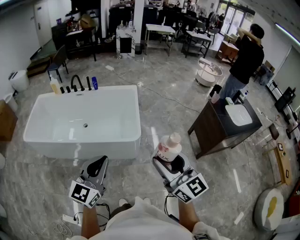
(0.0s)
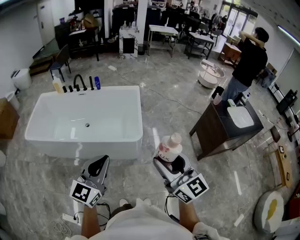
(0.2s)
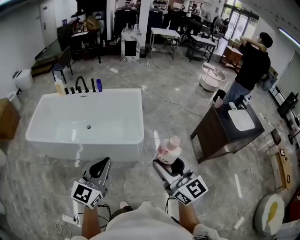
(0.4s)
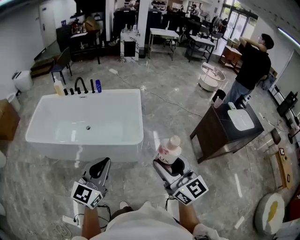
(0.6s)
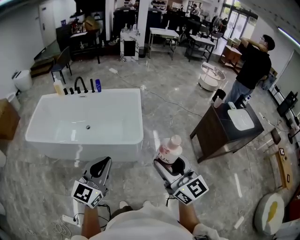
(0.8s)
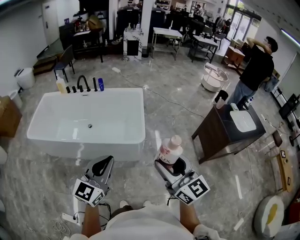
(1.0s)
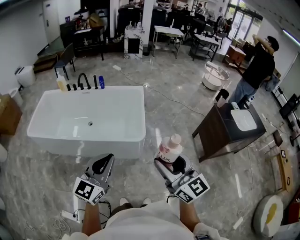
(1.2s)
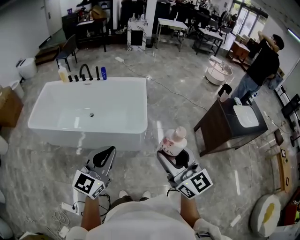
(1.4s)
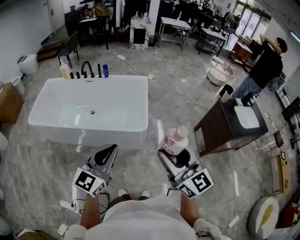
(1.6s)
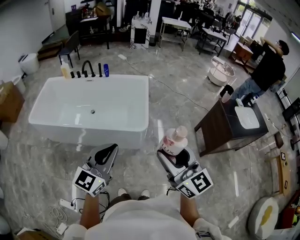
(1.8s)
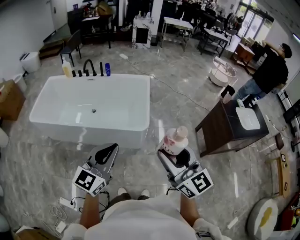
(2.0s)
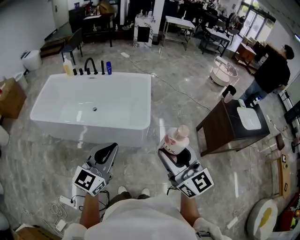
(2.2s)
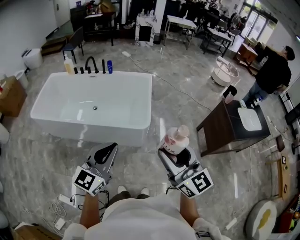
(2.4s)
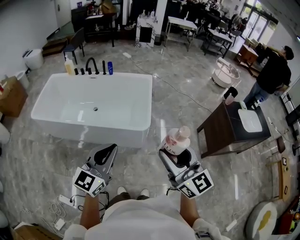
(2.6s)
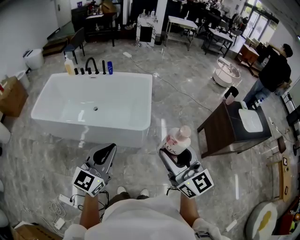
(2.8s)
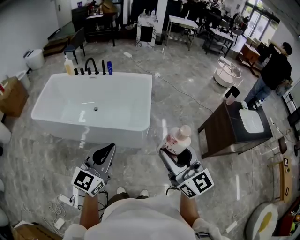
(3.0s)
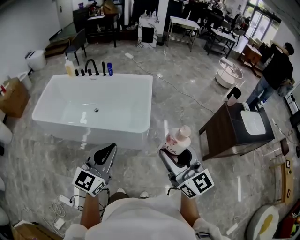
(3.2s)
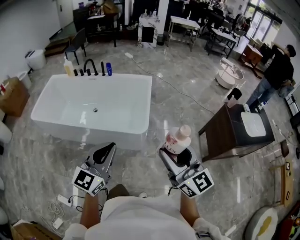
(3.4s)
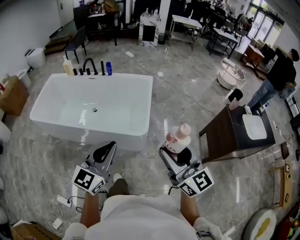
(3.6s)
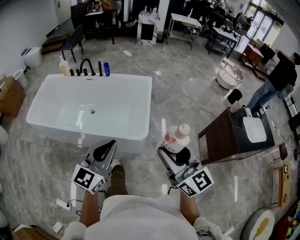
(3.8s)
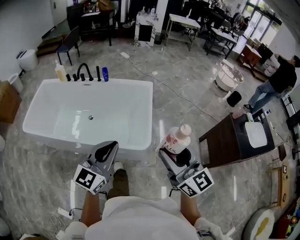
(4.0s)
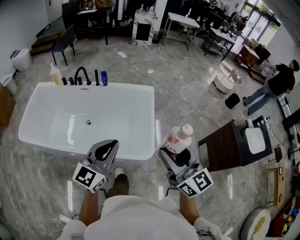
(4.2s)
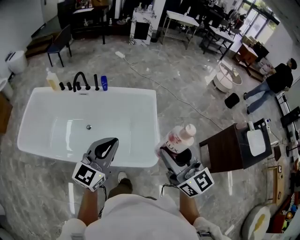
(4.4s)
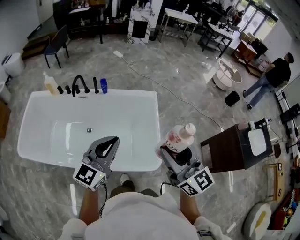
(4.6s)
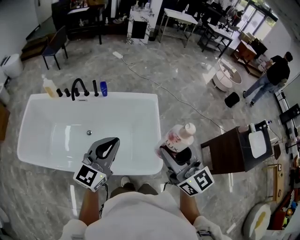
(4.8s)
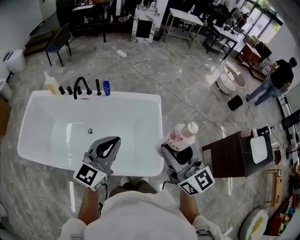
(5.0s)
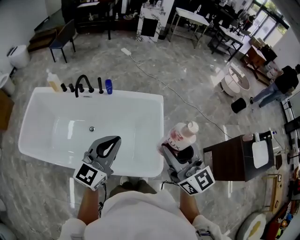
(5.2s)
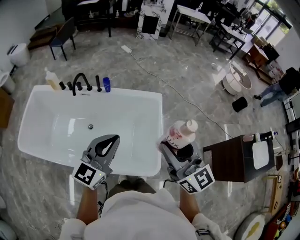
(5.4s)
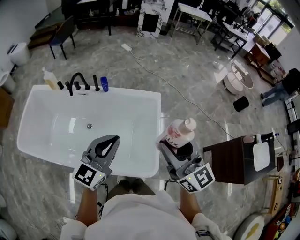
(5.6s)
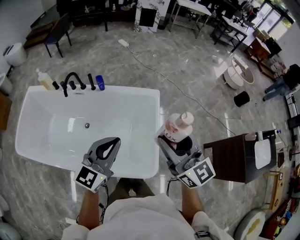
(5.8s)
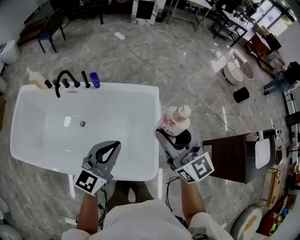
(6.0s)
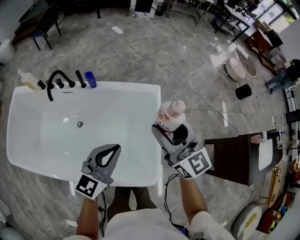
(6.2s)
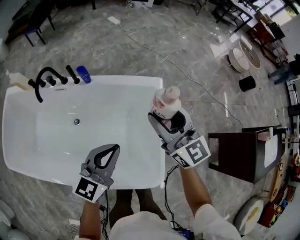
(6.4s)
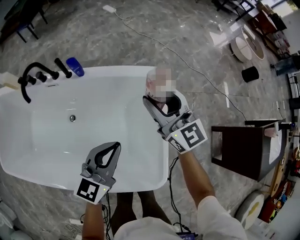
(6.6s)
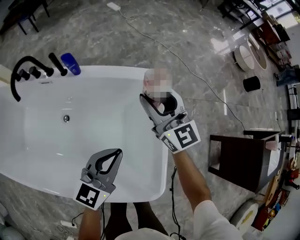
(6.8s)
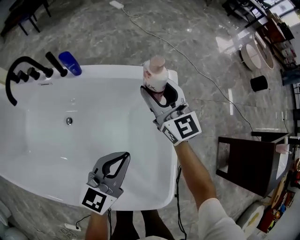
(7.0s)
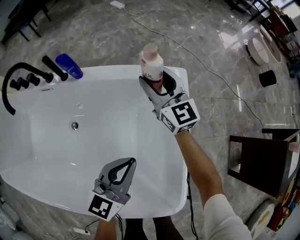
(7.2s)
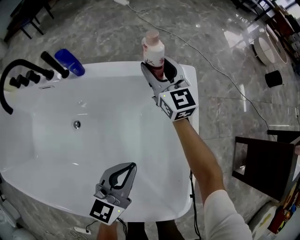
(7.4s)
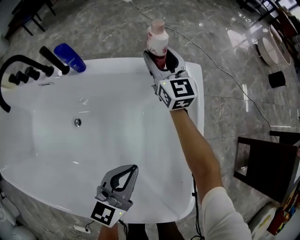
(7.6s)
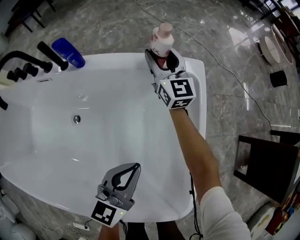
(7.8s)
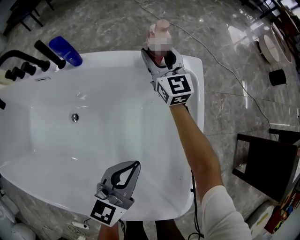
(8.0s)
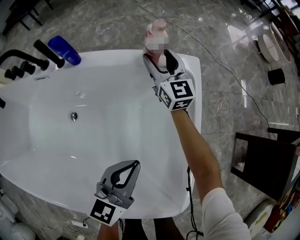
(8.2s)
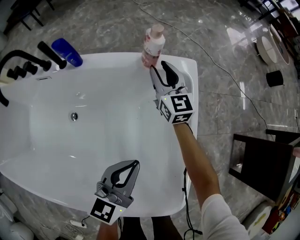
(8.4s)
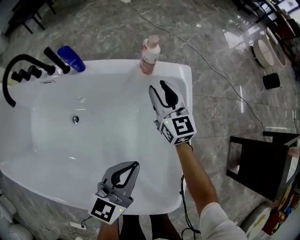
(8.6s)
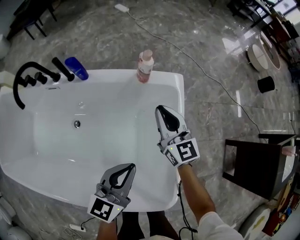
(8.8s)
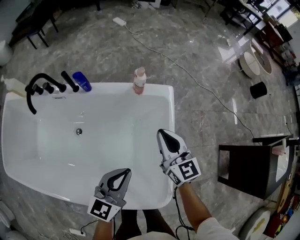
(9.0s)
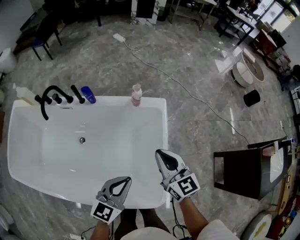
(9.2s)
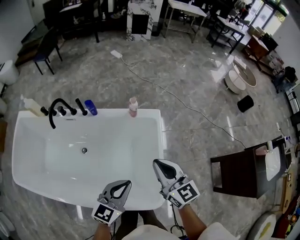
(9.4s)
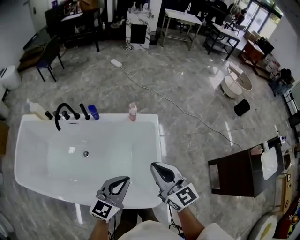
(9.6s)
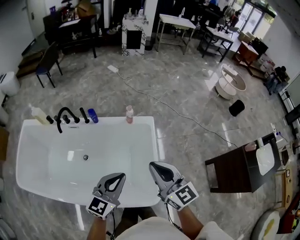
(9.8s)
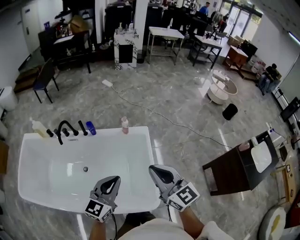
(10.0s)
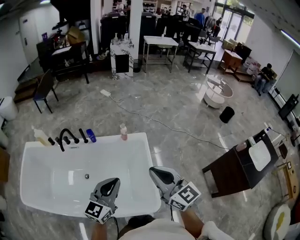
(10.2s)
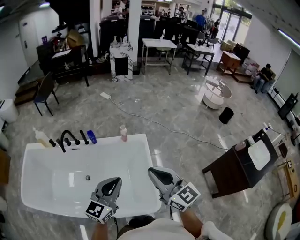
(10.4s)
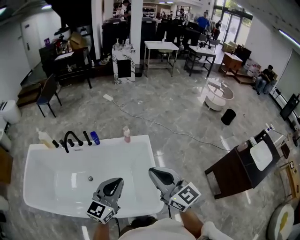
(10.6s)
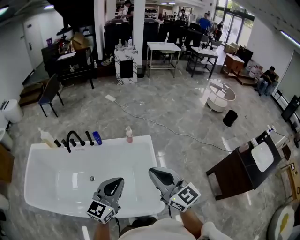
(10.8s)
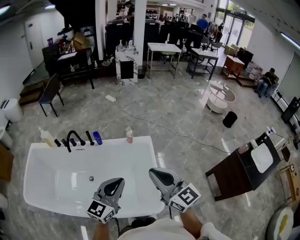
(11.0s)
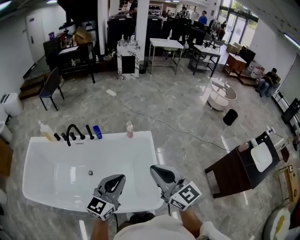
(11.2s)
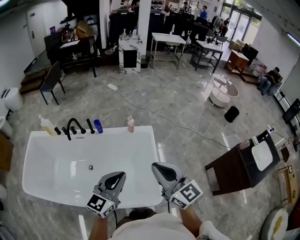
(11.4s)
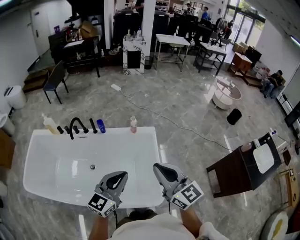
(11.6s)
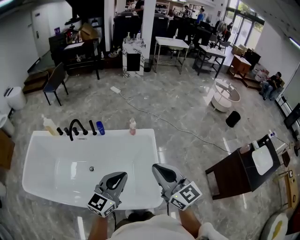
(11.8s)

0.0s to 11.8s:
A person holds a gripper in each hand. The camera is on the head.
0.0s to 3.0s: The grippers stay close to where they were, moving slightly.
3.0s to 4.4s: The two grippers travel together, forward, approximately 40 cm.
4.4s to 6.0s: The right gripper heads forward, covering about 30 cm. Meanwhile the left gripper travels forward and downward by some 25 cm.
6.0s to 7.4s: The right gripper heads downward and forward, covering some 60 cm. The left gripper moves downward, about 40 cm.
7.4s to 8.8s: The left gripper moves upward, approximately 10 cm. The right gripper moves backward and to the right, some 15 cm, and closes.
8.8s to 10.4s: The grippers both shift upward and backward by roughly 50 cm. The left gripper turns by approximately 20 degrees.
10.4s to 11.8s: The grippers make only small movements.

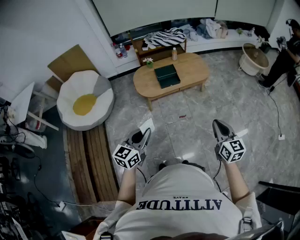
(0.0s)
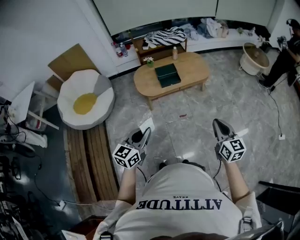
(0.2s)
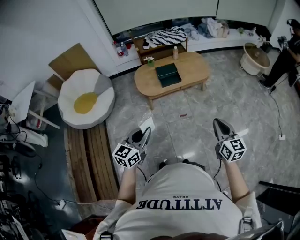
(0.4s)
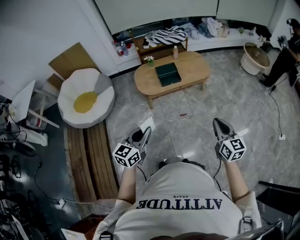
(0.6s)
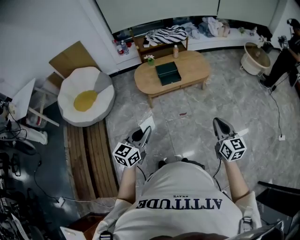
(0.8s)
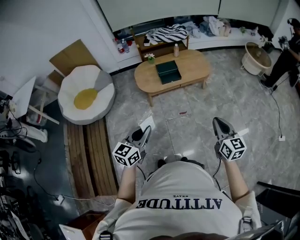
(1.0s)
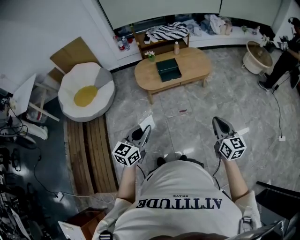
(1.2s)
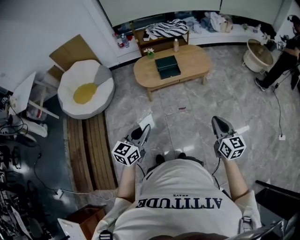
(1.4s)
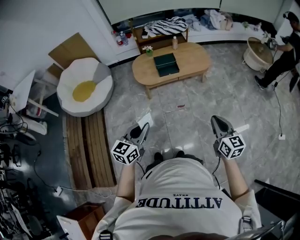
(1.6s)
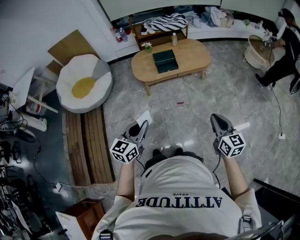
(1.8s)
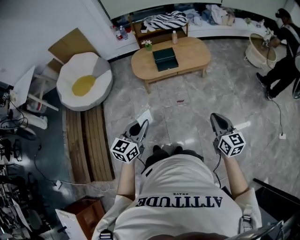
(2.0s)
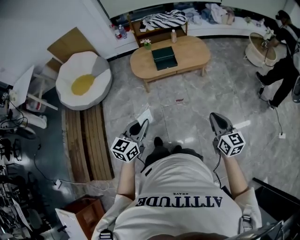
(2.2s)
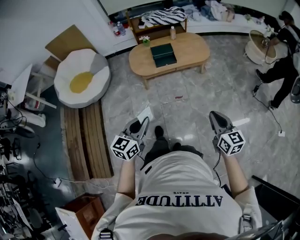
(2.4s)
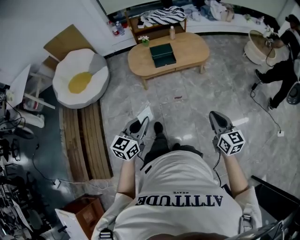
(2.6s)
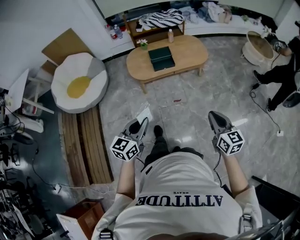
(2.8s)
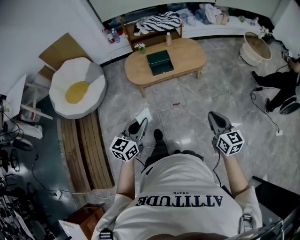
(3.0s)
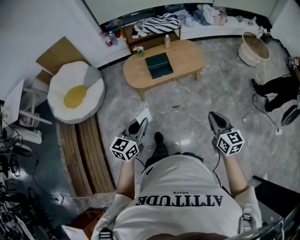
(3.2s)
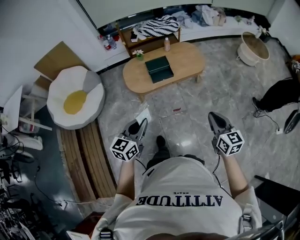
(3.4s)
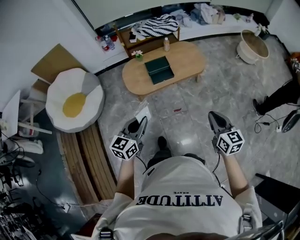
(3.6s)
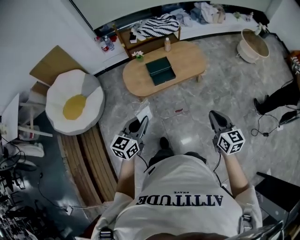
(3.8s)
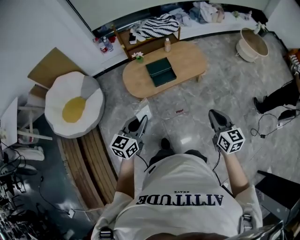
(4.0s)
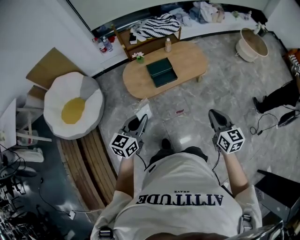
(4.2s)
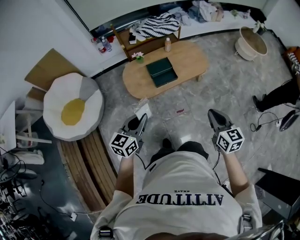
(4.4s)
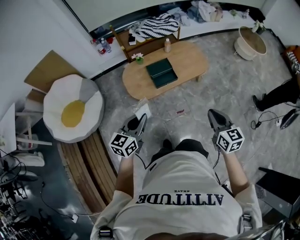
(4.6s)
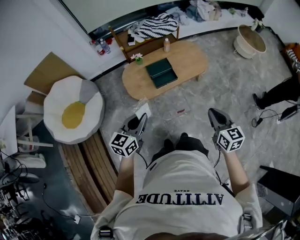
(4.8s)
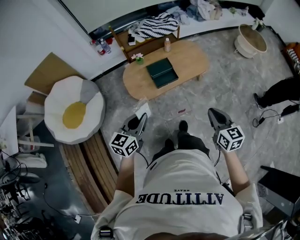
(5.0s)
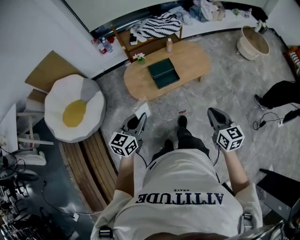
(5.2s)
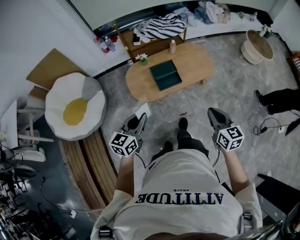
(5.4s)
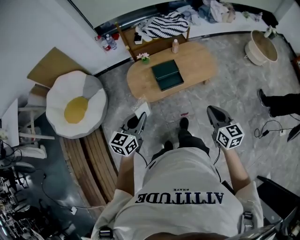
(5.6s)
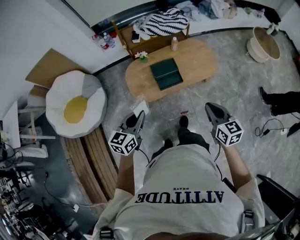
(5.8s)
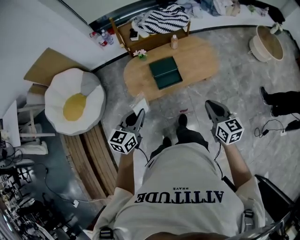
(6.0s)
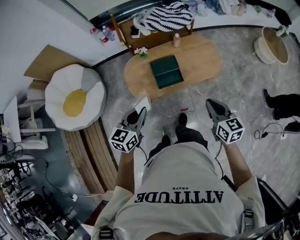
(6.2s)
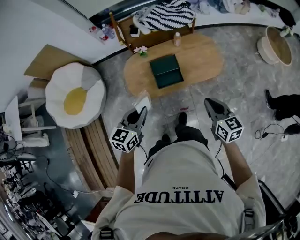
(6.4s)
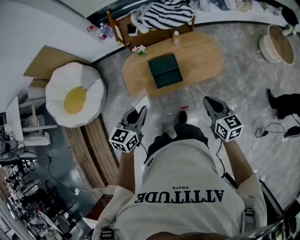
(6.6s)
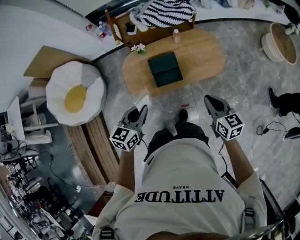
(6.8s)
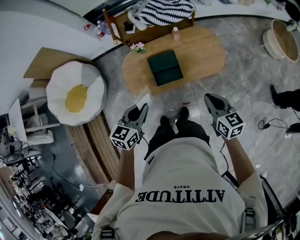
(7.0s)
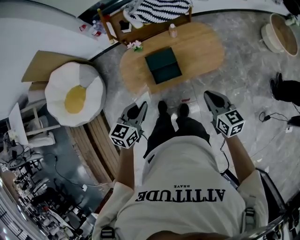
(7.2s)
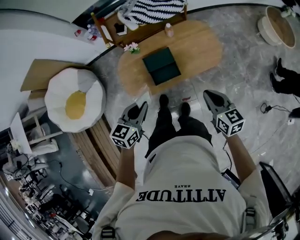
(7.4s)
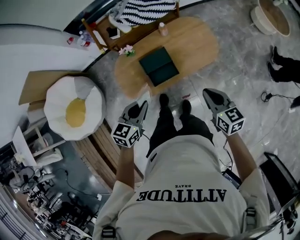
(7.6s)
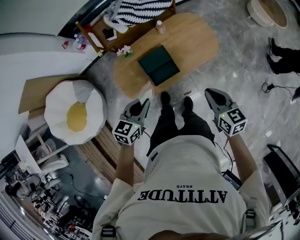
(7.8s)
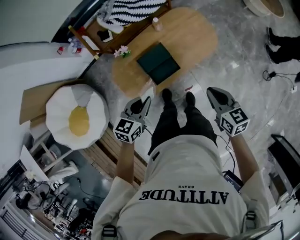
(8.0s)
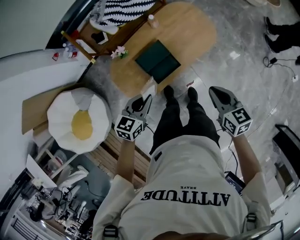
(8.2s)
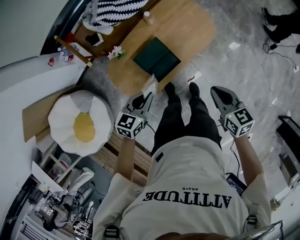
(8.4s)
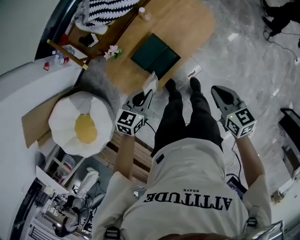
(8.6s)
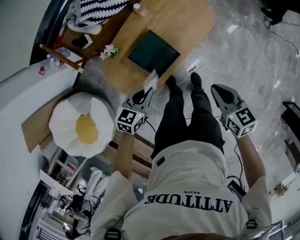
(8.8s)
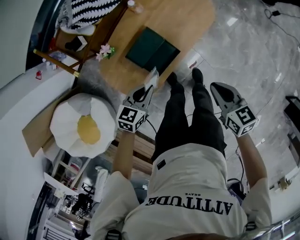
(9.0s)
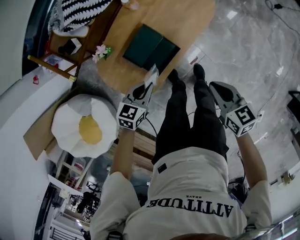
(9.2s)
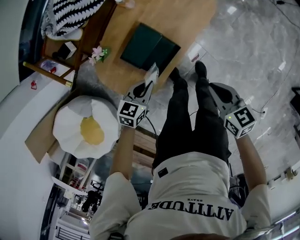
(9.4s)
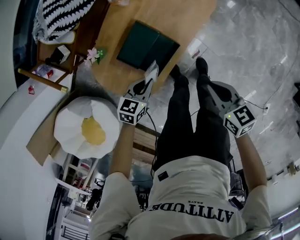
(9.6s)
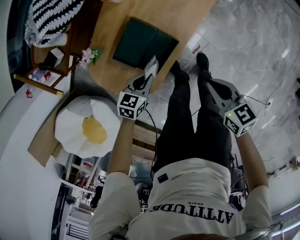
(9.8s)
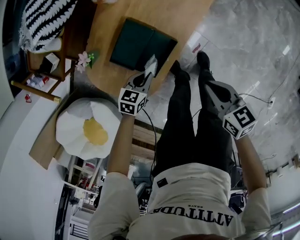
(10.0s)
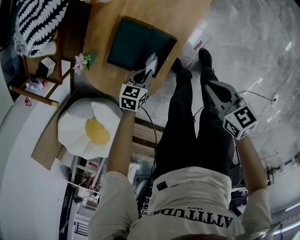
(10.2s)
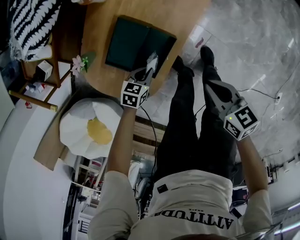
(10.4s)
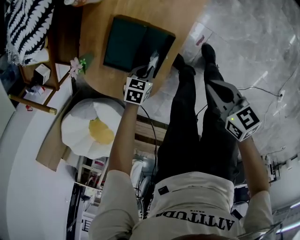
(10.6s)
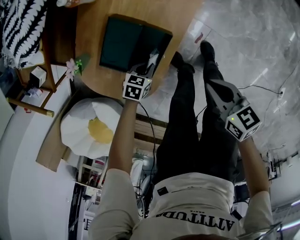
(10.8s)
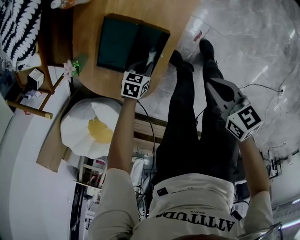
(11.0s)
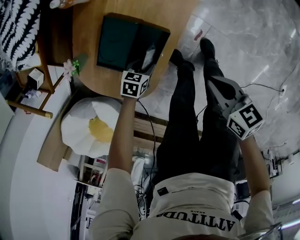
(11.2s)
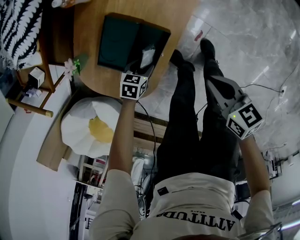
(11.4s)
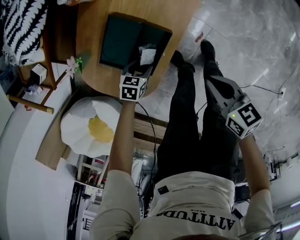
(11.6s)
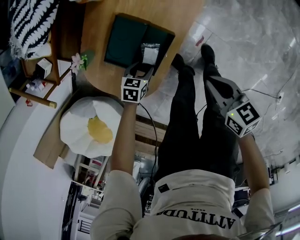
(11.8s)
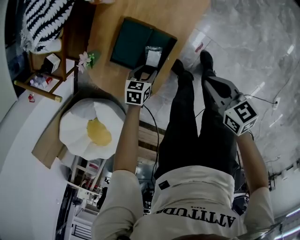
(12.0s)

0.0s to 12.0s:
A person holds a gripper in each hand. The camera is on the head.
0.0s to 1.6s: Both grippers move to the right, roughly 5 cm.
1.6s to 3.0s: The grippers both shift forward by some 5 cm.
3.0s to 4.4s: The two grippers go approximately 25 cm forward and to the left.
4.4s to 6.0s: Both grippers move forward, approximately 20 cm.
6.0s to 7.6s: The right gripper goes roughly 15 cm forward and downward. The left gripper travels forward, to the right and downward by roughly 20 cm.
7.6s to 9.0s: The right gripper heads downward, covering approximately 15 cm, and swivels approximately 20 degrees. The left gripper travels downward and forward by about 25 cm, and changes its angle by about 30 degrees.
9.0s to 10.4s: The right gripper heads downward, covering approximately 20 cm, while the left gripper travels downward by some 30 cm, and turns by about 30 degrees.
10.4s to 12.0s: The left gripper moves approximately 5 cm downward and comes back, and opens.
